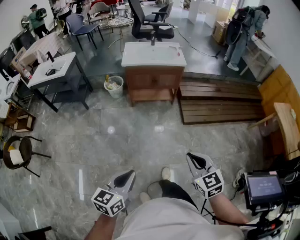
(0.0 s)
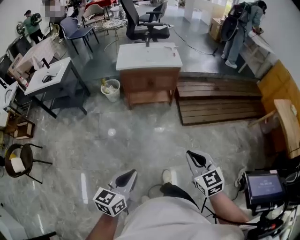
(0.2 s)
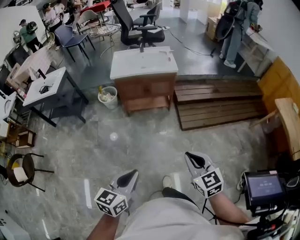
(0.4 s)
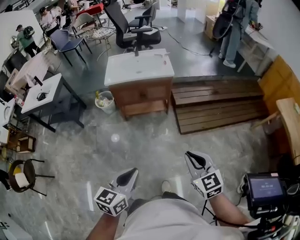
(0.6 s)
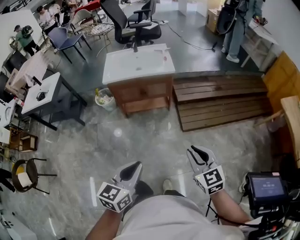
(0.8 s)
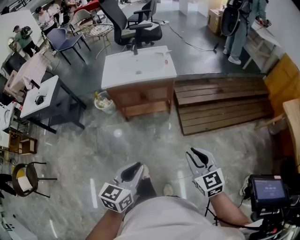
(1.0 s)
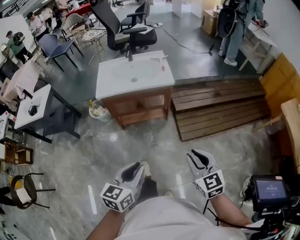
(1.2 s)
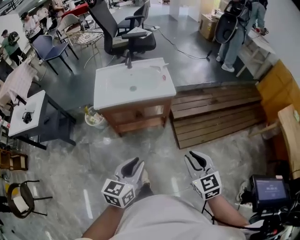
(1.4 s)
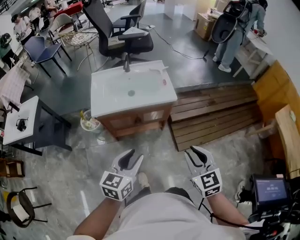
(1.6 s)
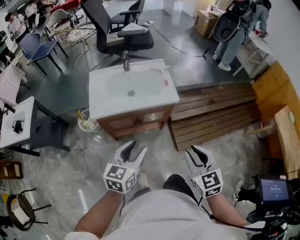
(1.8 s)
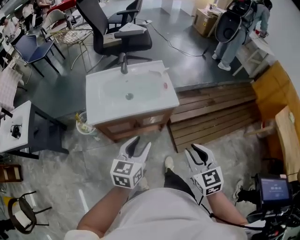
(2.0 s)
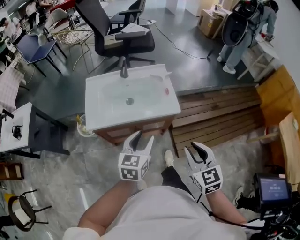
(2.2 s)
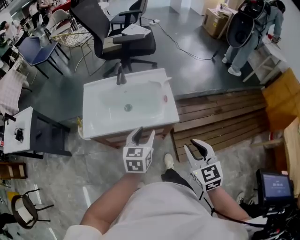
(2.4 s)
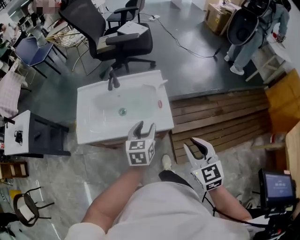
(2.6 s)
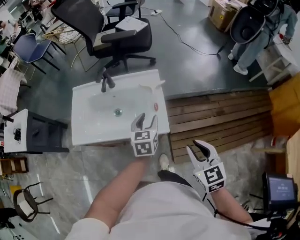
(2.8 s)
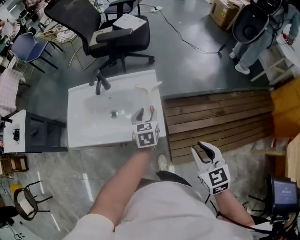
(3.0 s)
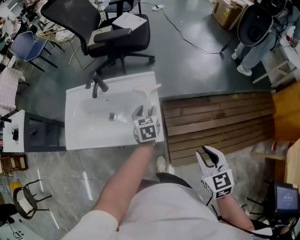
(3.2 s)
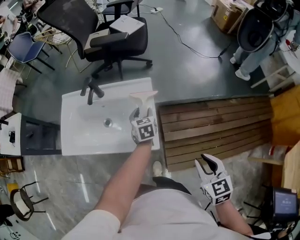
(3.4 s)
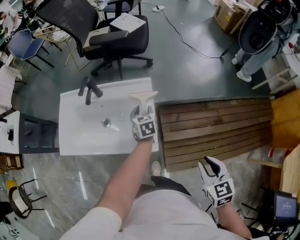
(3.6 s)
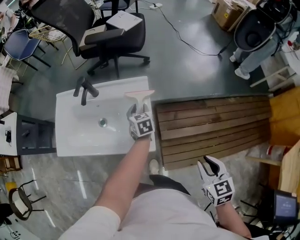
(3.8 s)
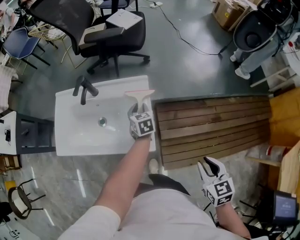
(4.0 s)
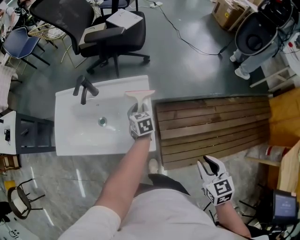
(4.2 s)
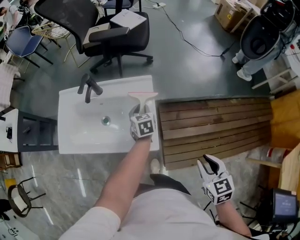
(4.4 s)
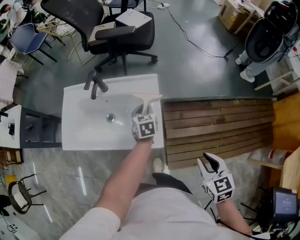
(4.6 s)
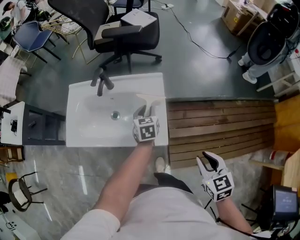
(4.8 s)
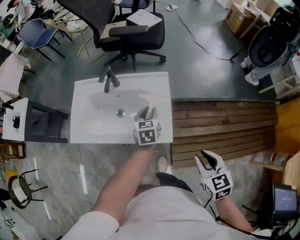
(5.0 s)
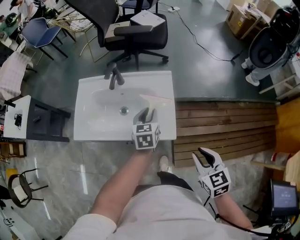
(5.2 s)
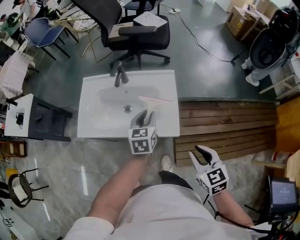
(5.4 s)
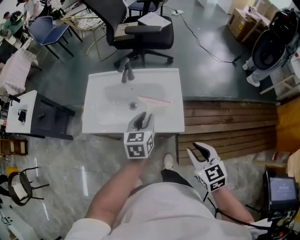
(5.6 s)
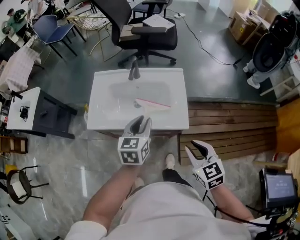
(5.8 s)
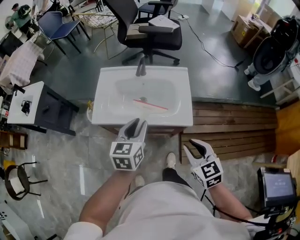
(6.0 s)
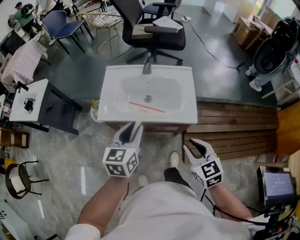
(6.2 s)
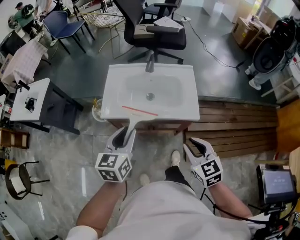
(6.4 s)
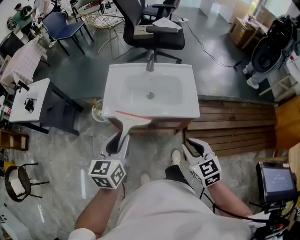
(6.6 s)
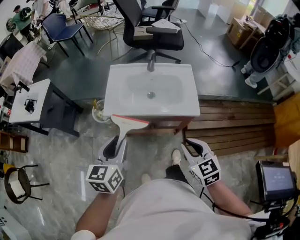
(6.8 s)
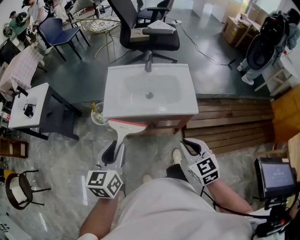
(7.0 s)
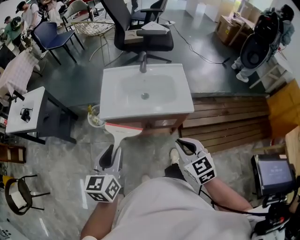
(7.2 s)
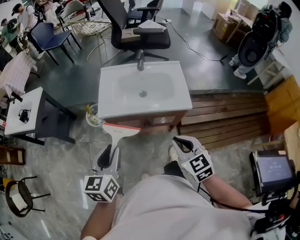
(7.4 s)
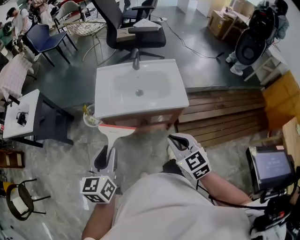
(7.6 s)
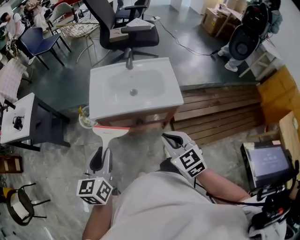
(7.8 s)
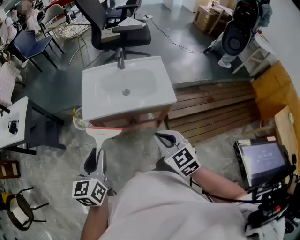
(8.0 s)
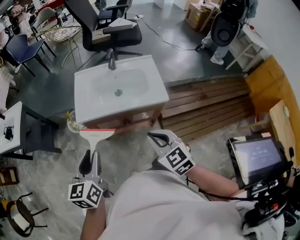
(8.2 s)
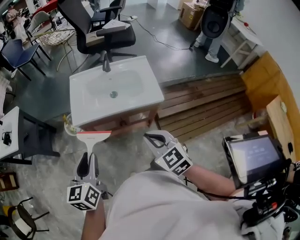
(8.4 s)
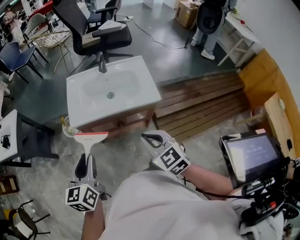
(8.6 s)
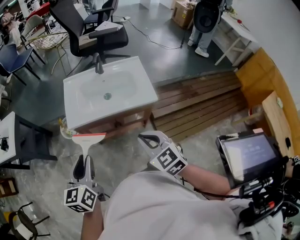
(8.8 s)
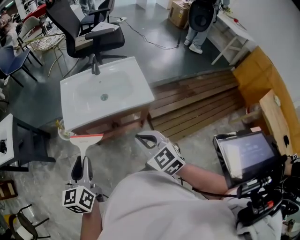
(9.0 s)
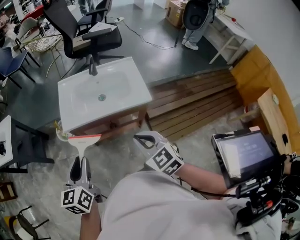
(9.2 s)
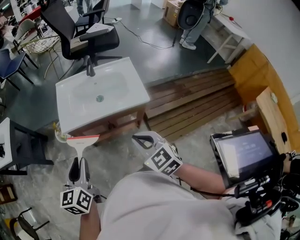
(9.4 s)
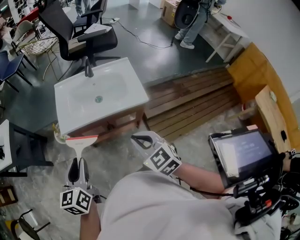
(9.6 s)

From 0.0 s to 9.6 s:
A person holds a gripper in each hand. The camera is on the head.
From 0.0 s to 1.6 s: The two grippers travel together, forward, about 50 cm. The left gripper opens.
From 1.6 s to 3.2 s: Both grippers are carried forward and to the right, some 50 cm. The left gripper rotates some 30 degrees.
From 3.2 s to 4.8 s: The left gripper closes its fingers.
From 4.8 s to 6.4 s: The right gripper shifts approximately 30 cm to the left. The left gripper travels to the left, backward and upward by roughly 50 cm.
From 6.4 s to 8.0 s: The left gripper travels backward and to the left by roughly 15 cm. The right gripper heads to the left and backward, covering some 10 cm.
From 8.0 s to 9.6 s: There are only small adjustments of the grippers.

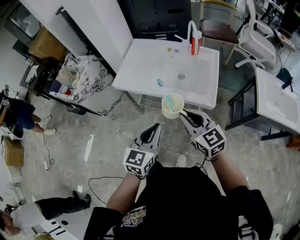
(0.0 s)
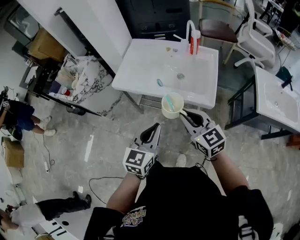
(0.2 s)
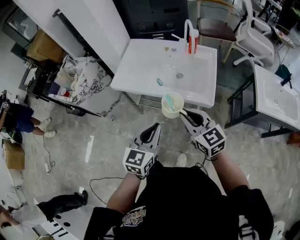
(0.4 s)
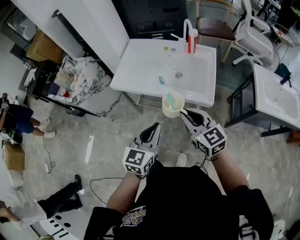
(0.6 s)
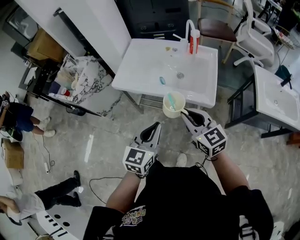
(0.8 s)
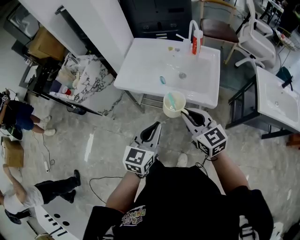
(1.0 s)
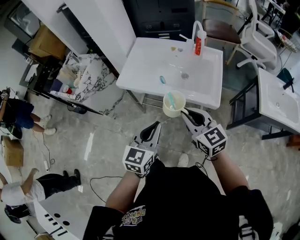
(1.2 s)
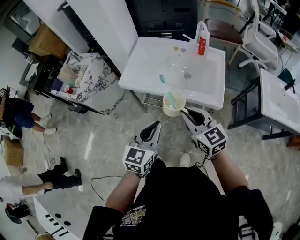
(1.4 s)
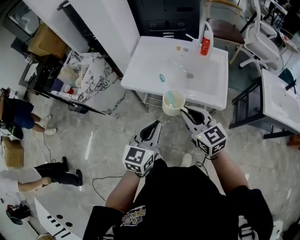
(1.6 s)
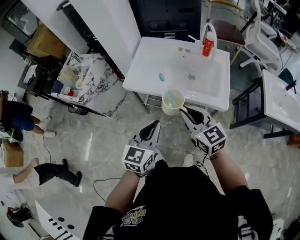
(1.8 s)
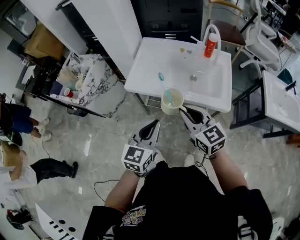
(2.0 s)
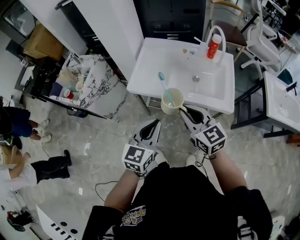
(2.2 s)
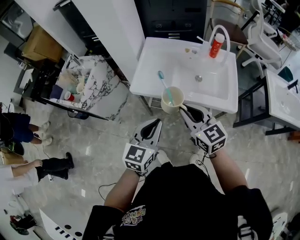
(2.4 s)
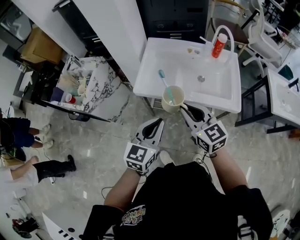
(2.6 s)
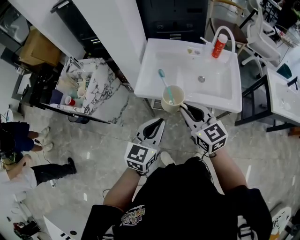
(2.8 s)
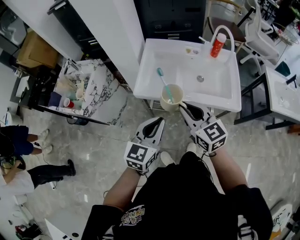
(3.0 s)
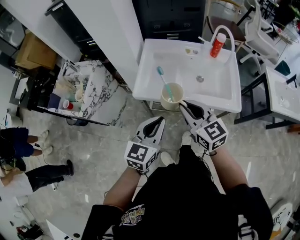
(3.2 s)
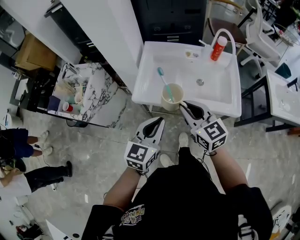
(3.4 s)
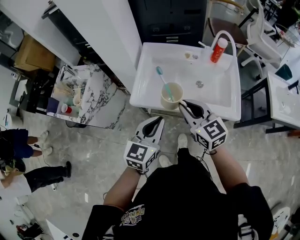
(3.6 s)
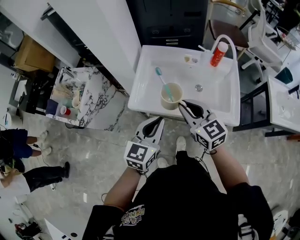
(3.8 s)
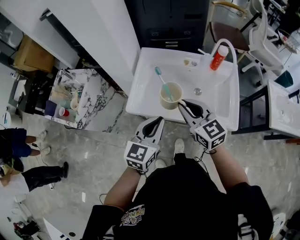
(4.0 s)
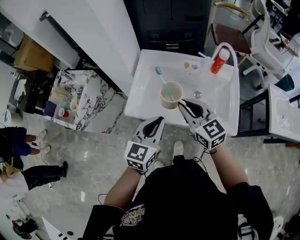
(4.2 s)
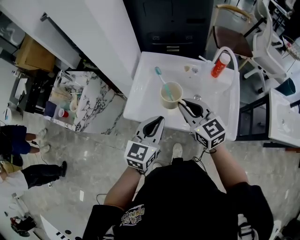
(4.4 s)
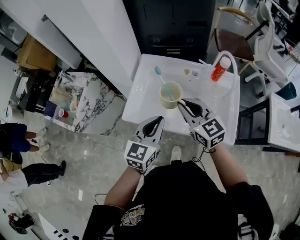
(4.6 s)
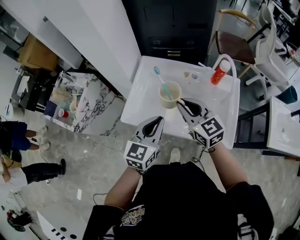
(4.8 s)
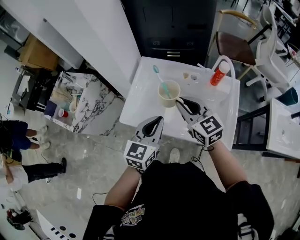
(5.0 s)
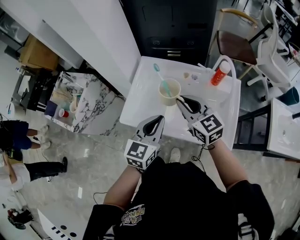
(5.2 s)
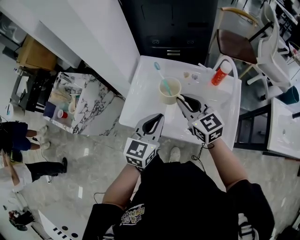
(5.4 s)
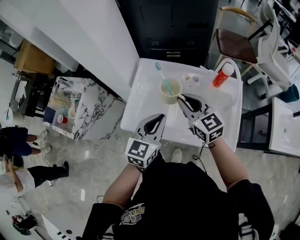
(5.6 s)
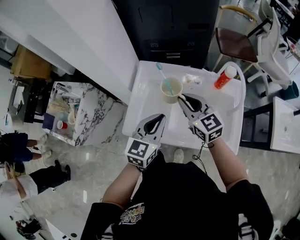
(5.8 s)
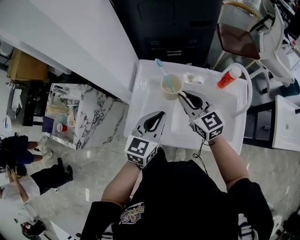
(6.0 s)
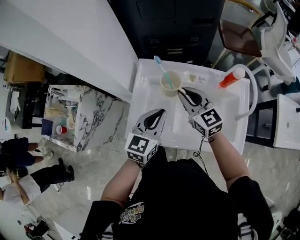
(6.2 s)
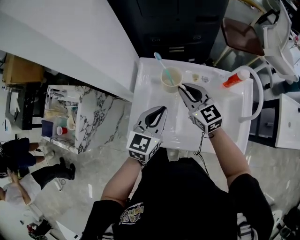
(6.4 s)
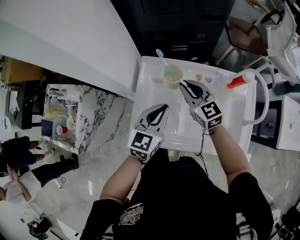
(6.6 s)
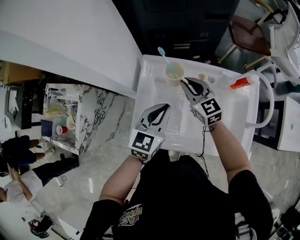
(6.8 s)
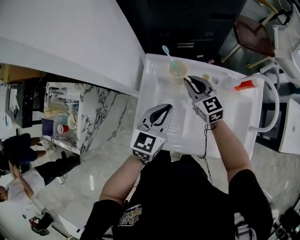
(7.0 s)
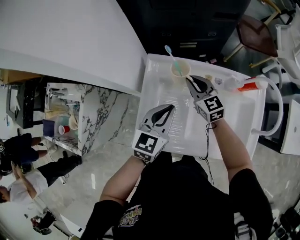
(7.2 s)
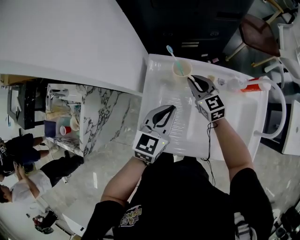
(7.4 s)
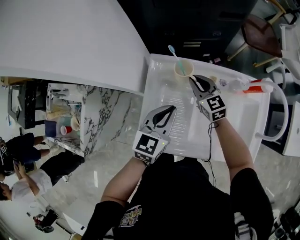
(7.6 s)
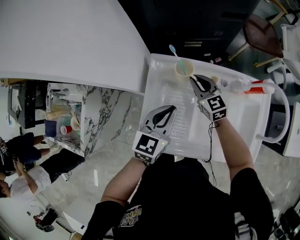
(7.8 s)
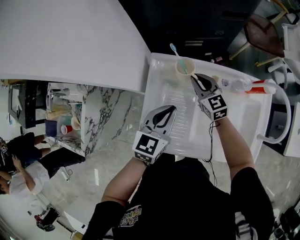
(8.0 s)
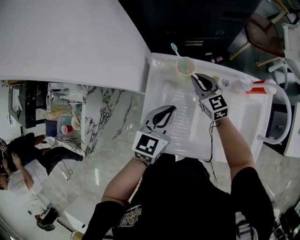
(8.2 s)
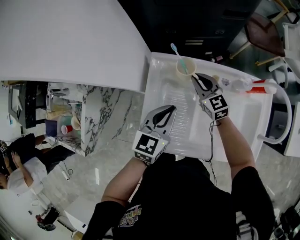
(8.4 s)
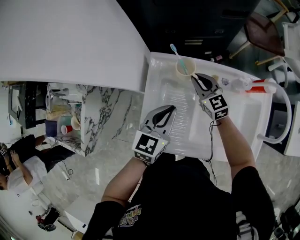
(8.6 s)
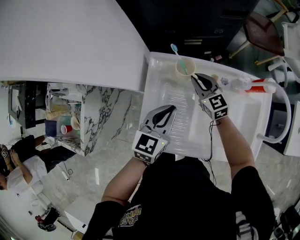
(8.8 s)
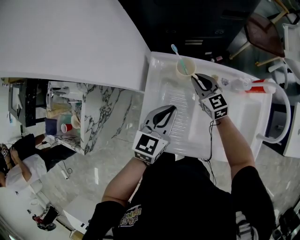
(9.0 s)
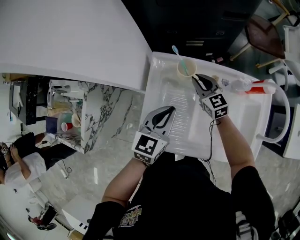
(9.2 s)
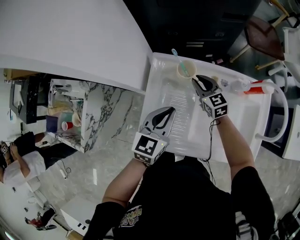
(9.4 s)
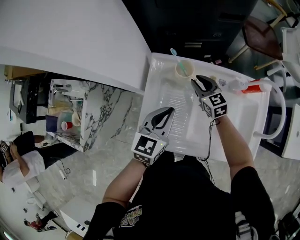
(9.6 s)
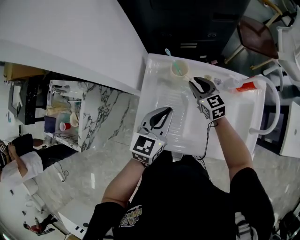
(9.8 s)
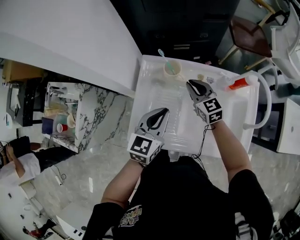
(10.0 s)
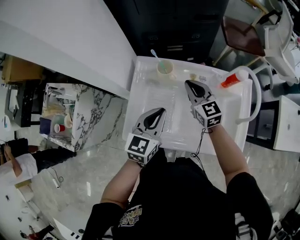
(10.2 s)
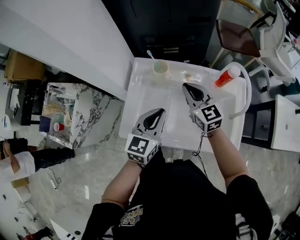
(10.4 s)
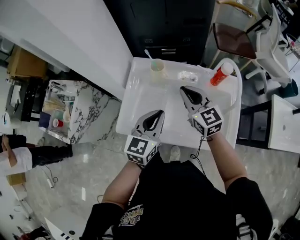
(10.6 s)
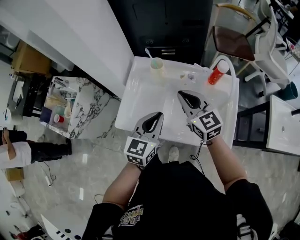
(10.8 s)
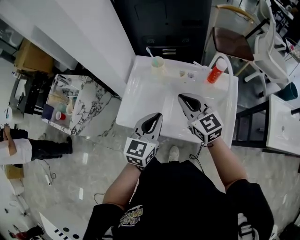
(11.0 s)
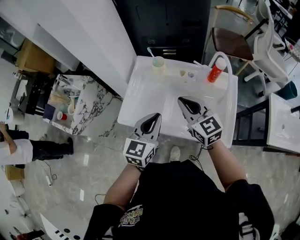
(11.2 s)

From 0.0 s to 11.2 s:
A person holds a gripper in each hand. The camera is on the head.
From 0.0 s to 1.6 s: The two grippers go approximately 5 cm to the left.
From 1.6 s to 3.2 s: Both grippers travel together to the left and forward, approximately 15 cm.
From 3.2 s to 4.8 s: Both grippers travel together forward and to the right, some 20 cm.
From 4.8 s to 6.4 s: The left gripper travels forward by approximately 15 cm, while the right gripper goes about 20 cm forward and downward.
From 6.4 s to 8.0 s: The right gripper goes approximately 15 cm downward and forward. The left gripper travels forward by approximately 5 cm.
From 8.0 s to 9.6 s: The grippers stay close to where they were, moving slightly.
From 9.6 s to 11.2 s: The left gripper moves backward and upward, about 20 cm, while the right gripper travels backward and upward by roughly 30 cm, and closes.

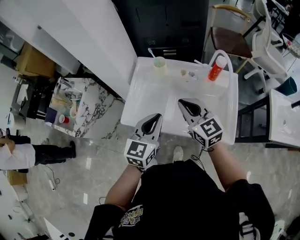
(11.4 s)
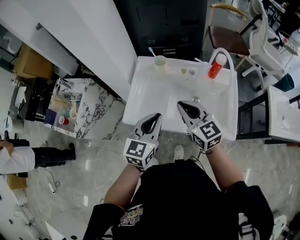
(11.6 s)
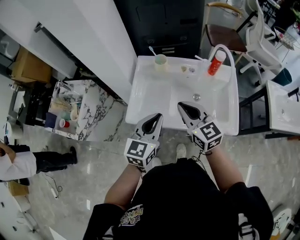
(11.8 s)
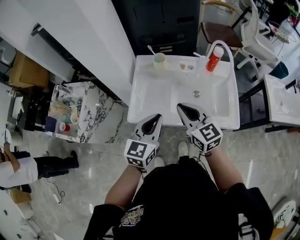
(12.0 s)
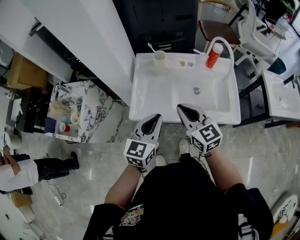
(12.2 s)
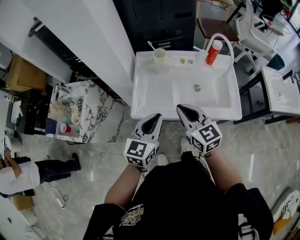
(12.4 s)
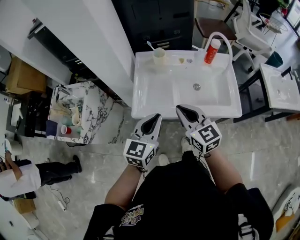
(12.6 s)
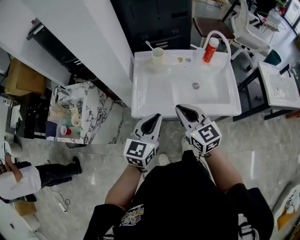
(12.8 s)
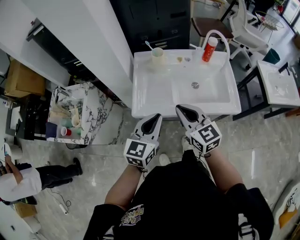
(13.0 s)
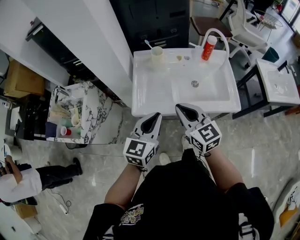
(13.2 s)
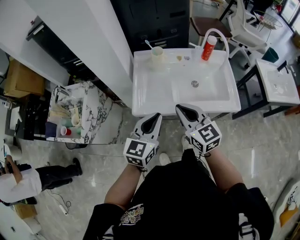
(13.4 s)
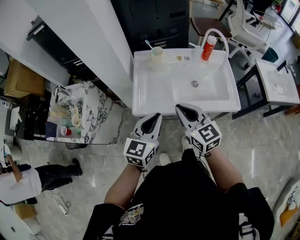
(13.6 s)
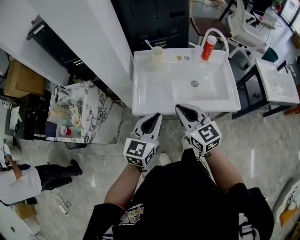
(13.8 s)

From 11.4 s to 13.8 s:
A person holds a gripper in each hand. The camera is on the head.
From 11.4 s to 12.6 s: The left gripper moves to the left and backward, roughly 10 cm. Meanwhile the right gripper moves backward and to the left, some 15 cm.
From 12.6 s to 13.8 s: The grippers make only small movements.
